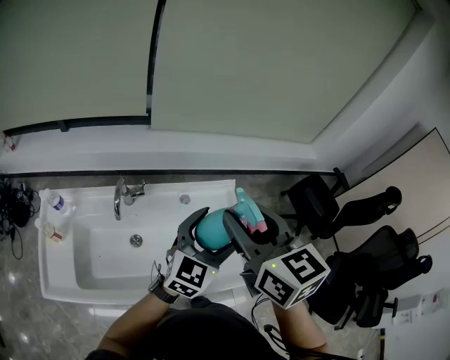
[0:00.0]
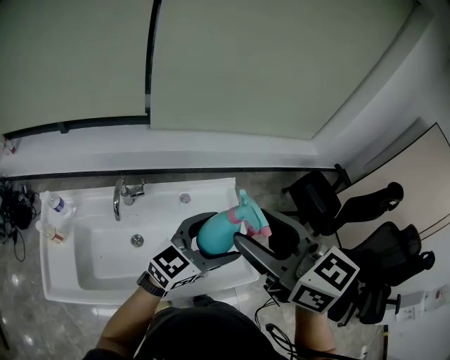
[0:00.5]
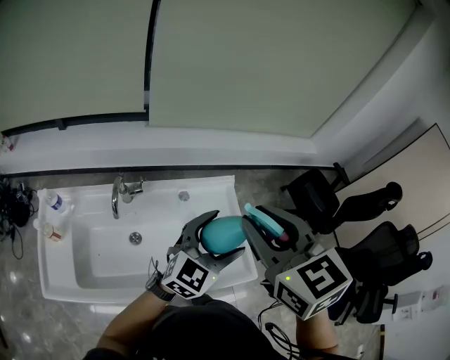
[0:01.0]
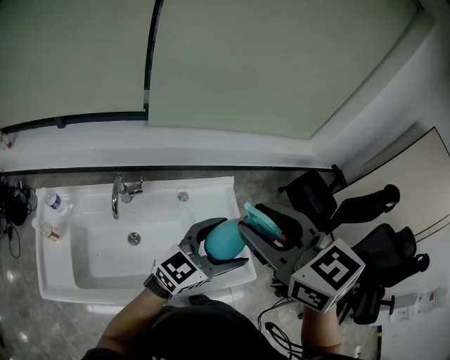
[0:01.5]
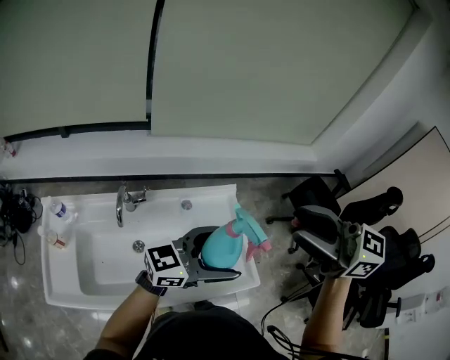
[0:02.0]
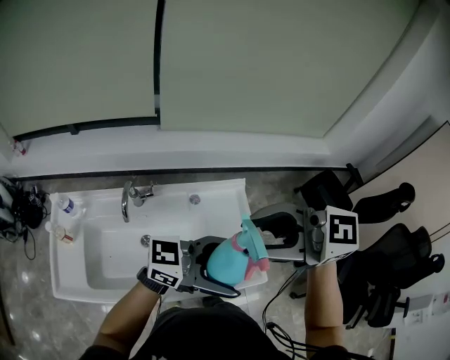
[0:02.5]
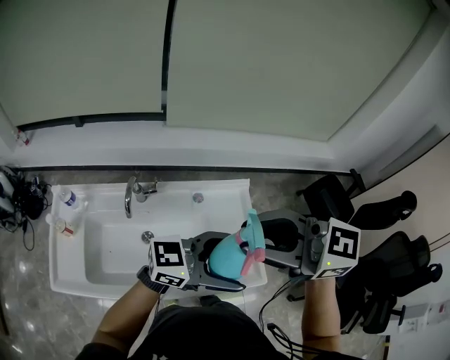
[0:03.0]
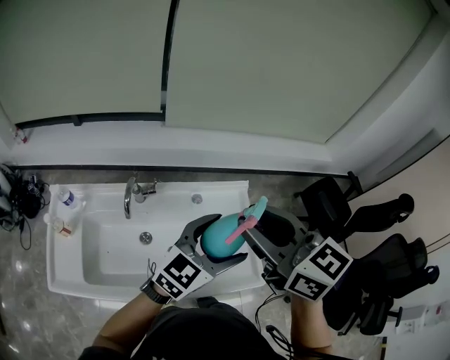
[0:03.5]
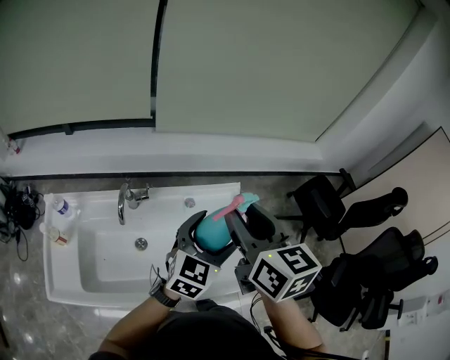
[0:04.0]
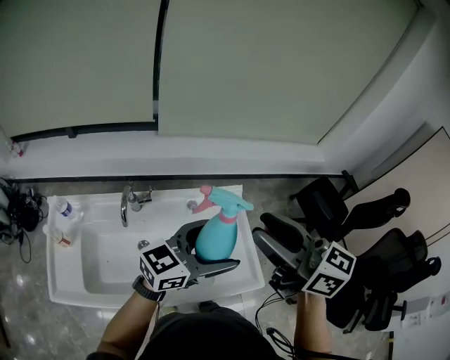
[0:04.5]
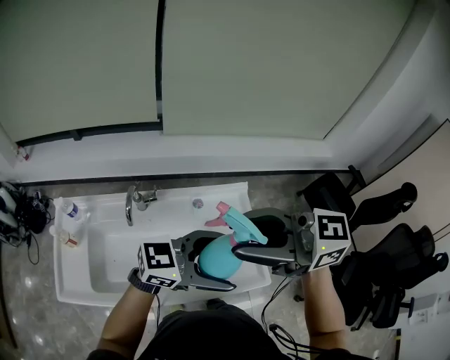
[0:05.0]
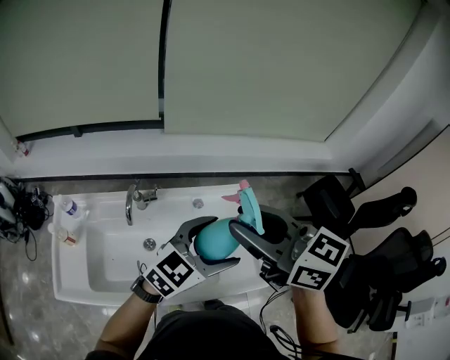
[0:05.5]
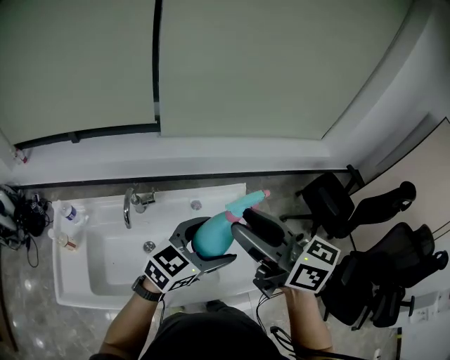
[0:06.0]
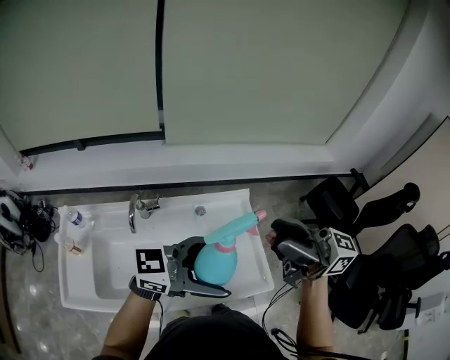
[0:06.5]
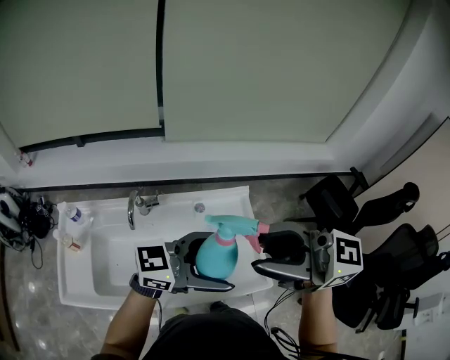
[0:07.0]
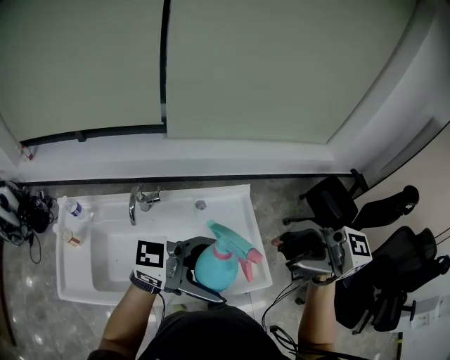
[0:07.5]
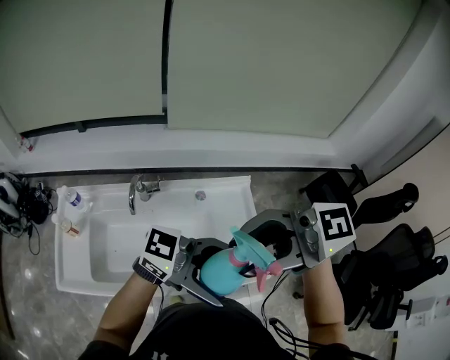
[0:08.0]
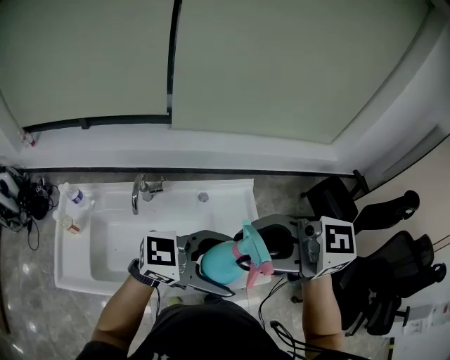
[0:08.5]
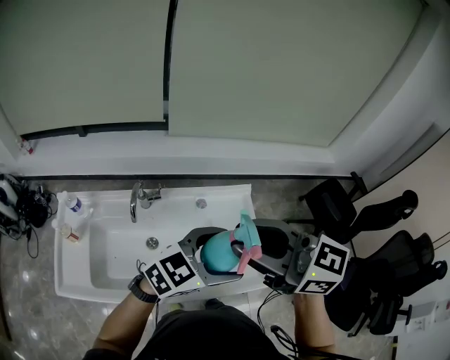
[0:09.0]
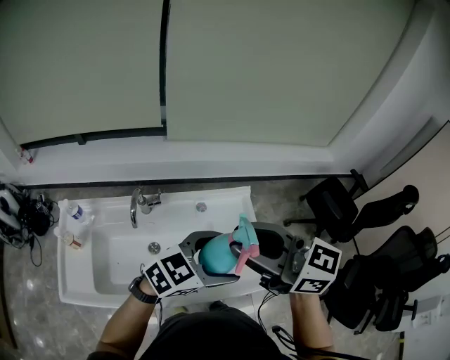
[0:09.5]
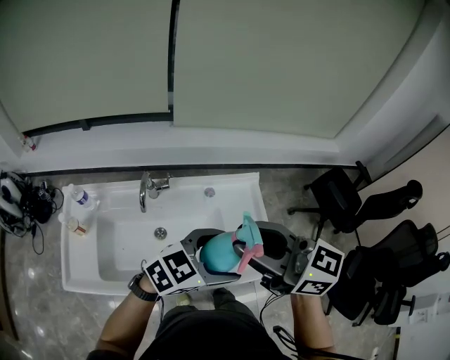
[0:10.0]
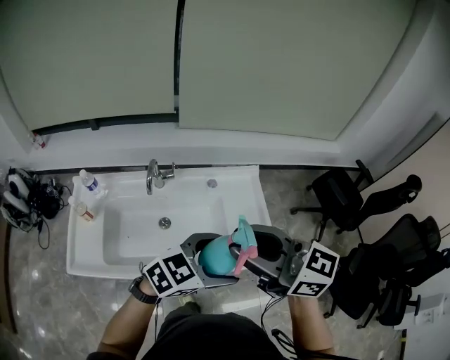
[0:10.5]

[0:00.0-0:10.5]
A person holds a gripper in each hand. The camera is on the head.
0:00.0 to 0:02.0: The left gripper moves some 5 cm, and changes its angle by about 50 degrees, while the right gripper ends up some 10 cm from where it was, and changes its angle by about 30 degrees.
0:02.0 to 0:04.0: The right gripper ends up approximately 15 cm from where it was, and changes its angle by some 40 degrees. The left gripper changes place by approximately 10 cm, and rotates roughly 50 degrees.
0:04.0 to 0:06.5: The left gripper goes up and down, approximately 10 cm each way, reversing 2 times, and turns by about 60 degrees. Meanwhile the right gripper changes place by some 10 cm, and tips its fingers upward by some 40 degrees.
0:06.5 to 0:08.5: The right gripper moves some 10 cm, and swivels about 30 degrees.
0:08.5 to 0:10.5: The right gripper shifts by roughly 10 cm, and swivels about 30 degrees. Meanwhile the left gripper moves some 10 cm, and rotates some 30 degrees.

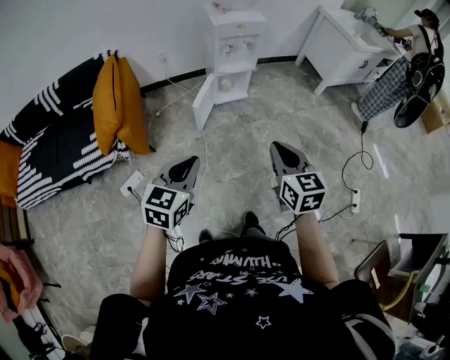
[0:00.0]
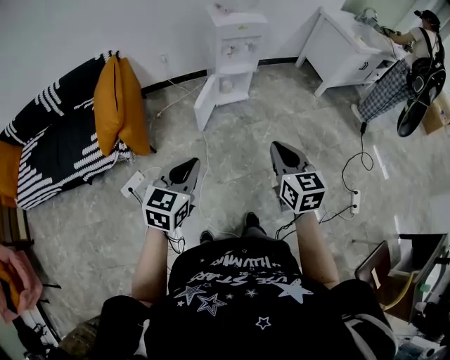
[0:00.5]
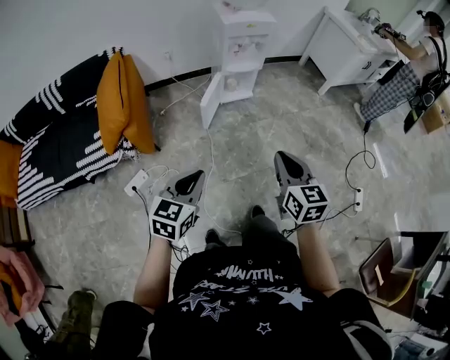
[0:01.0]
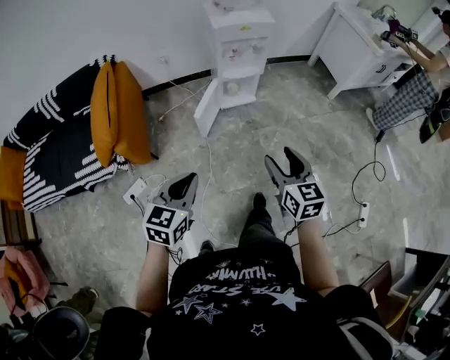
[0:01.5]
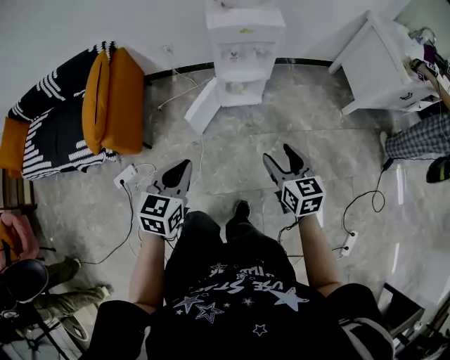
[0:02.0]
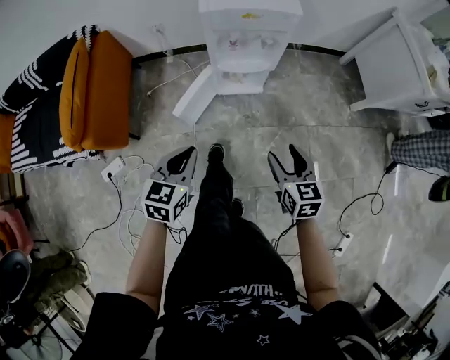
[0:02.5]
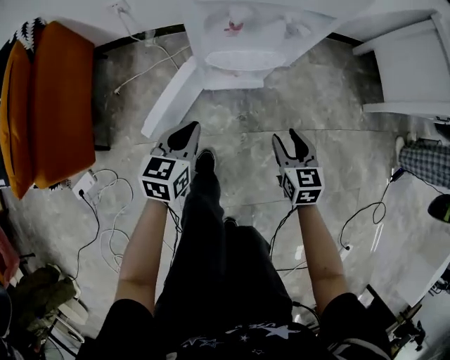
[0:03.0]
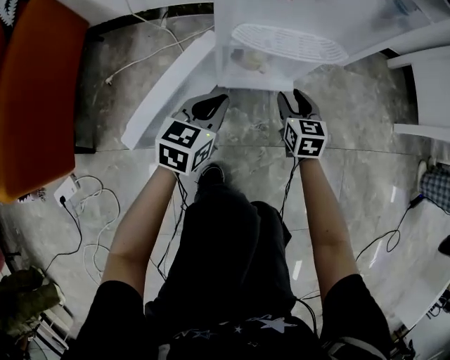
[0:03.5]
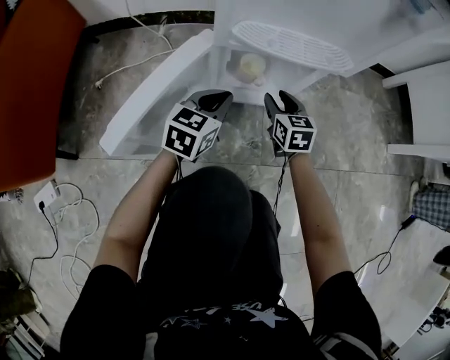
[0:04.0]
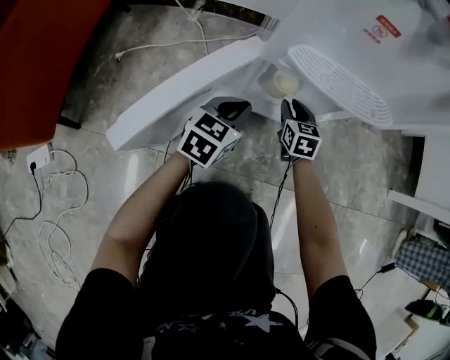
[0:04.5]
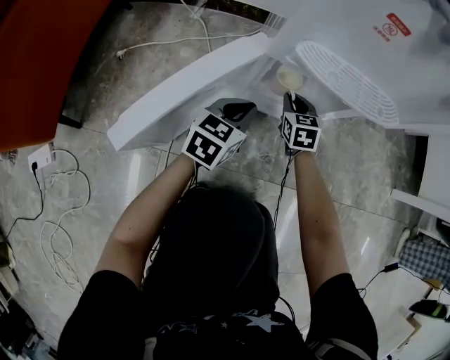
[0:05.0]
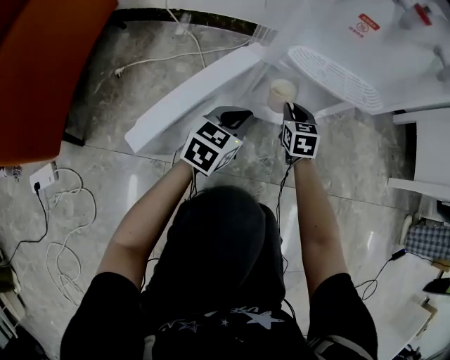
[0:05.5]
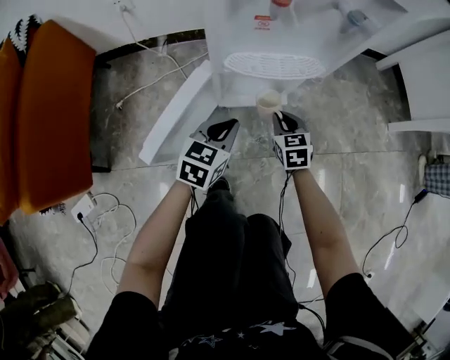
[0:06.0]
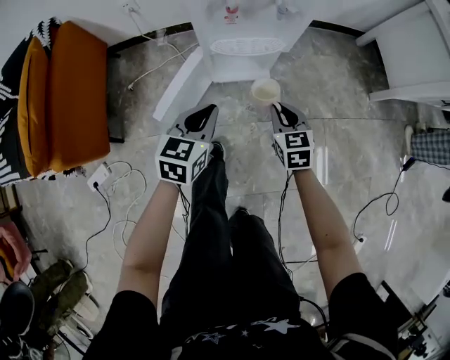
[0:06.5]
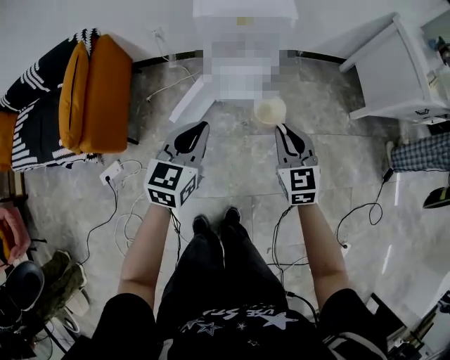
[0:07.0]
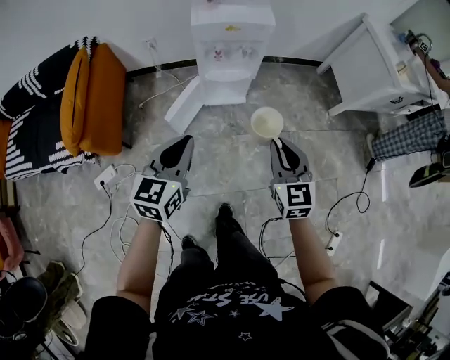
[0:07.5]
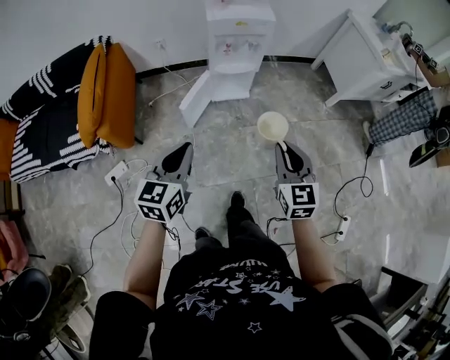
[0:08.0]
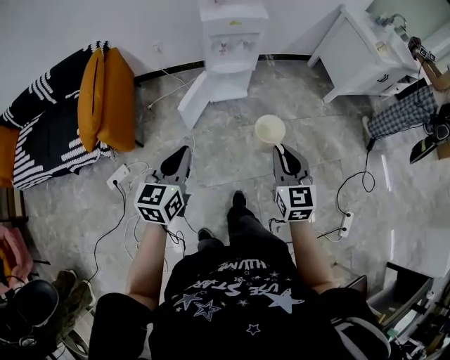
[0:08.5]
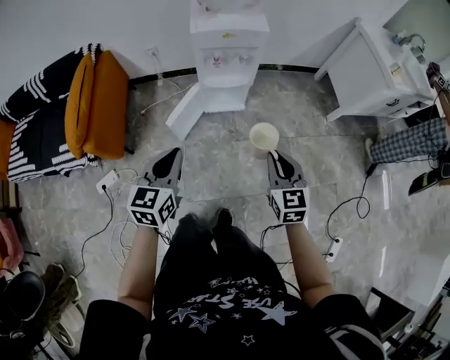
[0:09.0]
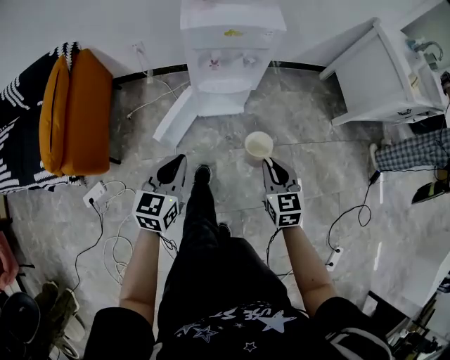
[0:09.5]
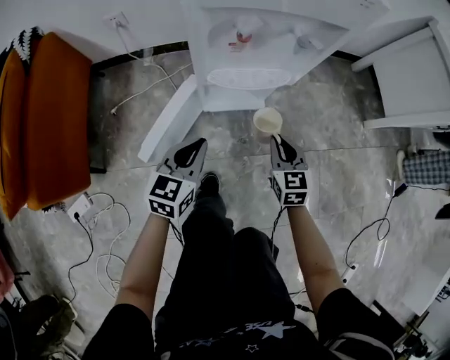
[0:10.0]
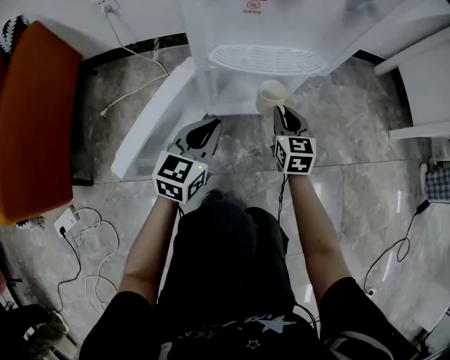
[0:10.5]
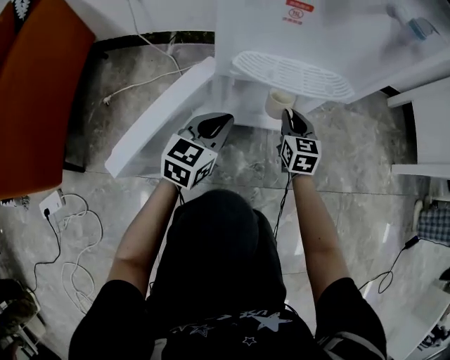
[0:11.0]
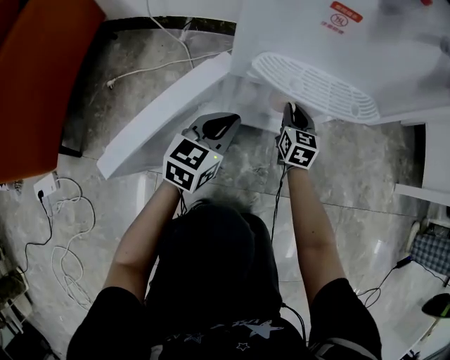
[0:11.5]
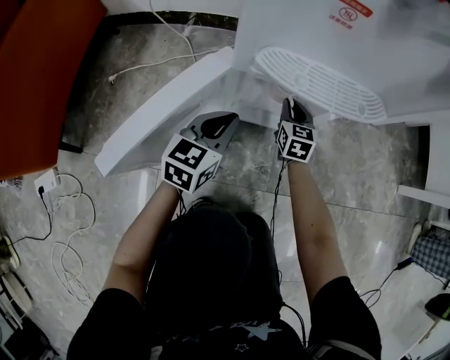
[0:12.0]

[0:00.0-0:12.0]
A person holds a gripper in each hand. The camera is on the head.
0:00.0 to 0:02.0: The right gripper is displaced forward and downward by some 30 cm, and opens up, while the left gripper shifts roughly 25 cm forward.
0:02.0 to 0:04.0: Both grippers are carried forward, about 50 cm. The two grippers go some 60 cm downward.
0:04.0 to 0:06.0: The left gripper goes some 10 cm upward and backward. The right gripper goes about 10 cm backward and upward, and closes its fingers.
0:06.0 to 0:08.0: Both grippers are carried backward, about 50 cm. The grippers both shift upward by some 60 cm. The right gripper swivels roughly 30 degrees.
0:08.0 to 0:10.0: Both grippers travel together downward and forward, about 60 cm.
0:10.0 to 0:12.0: The grippers both shift downward and forward by about 30 cm.

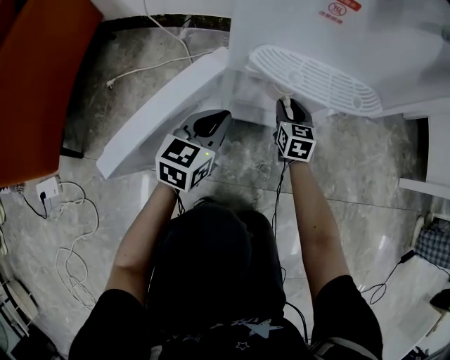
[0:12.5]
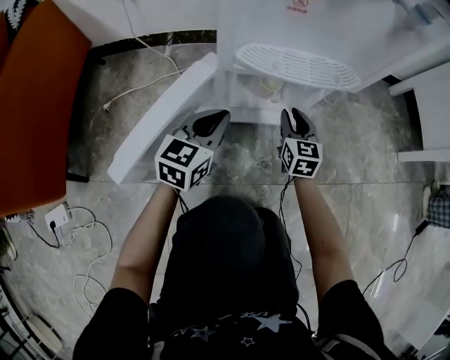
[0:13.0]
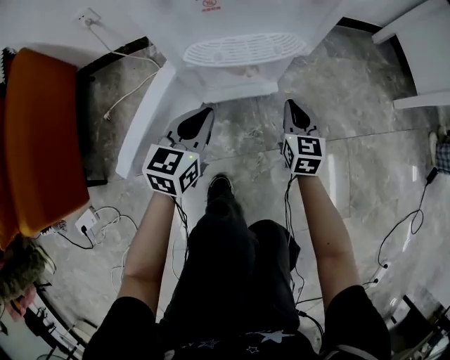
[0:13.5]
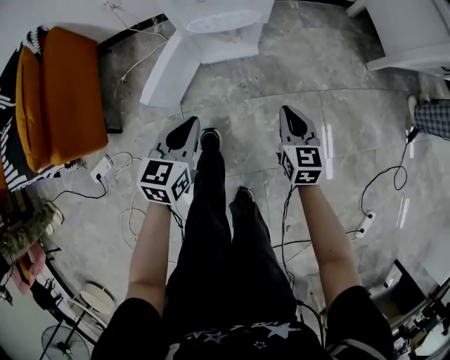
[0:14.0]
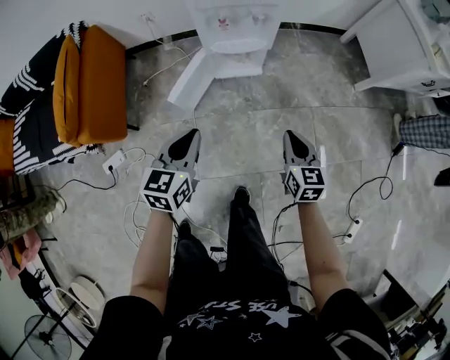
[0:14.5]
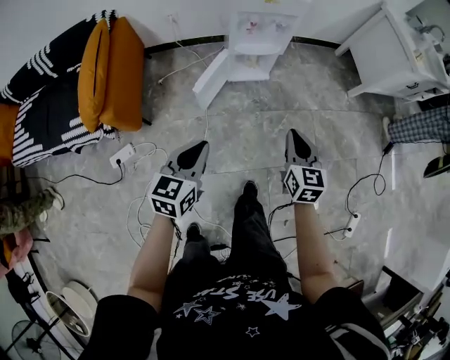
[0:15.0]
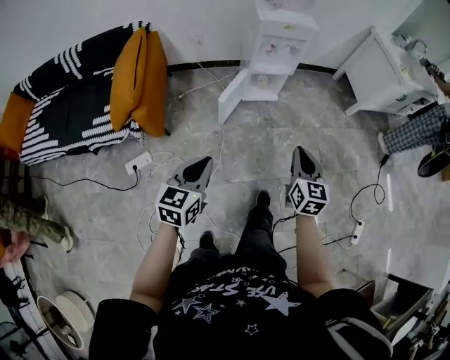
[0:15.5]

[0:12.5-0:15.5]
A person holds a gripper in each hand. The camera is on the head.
0:12.5 to 0:14.0: The left gripper is displaced upward and backward by roughly 40 cm. The right gripper goes about 50 cm upward, backward and to the right, and closes.
0:14.0 to 0:15.5: The left gripper heads backward, upward and to the left, covering approximately 50 cm. The right gripper travels upward, backward and to the left by about 50 cm.

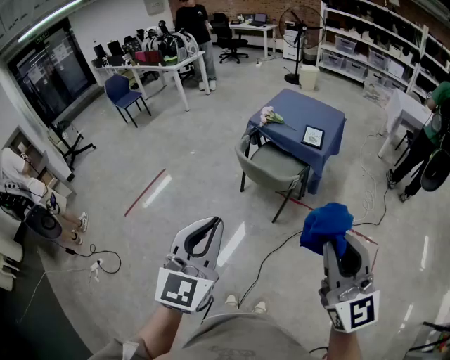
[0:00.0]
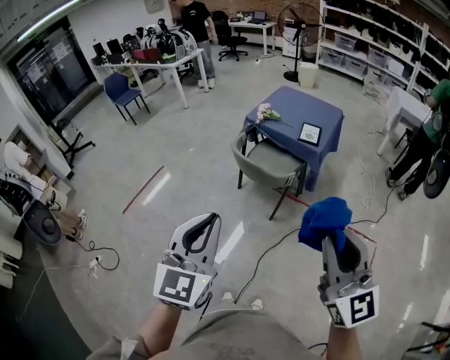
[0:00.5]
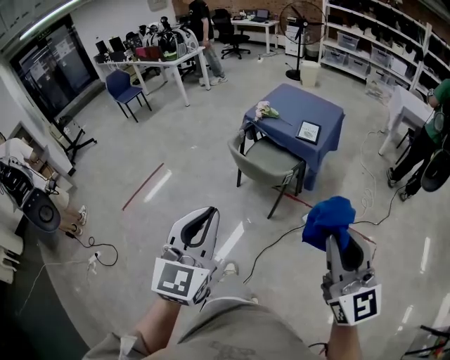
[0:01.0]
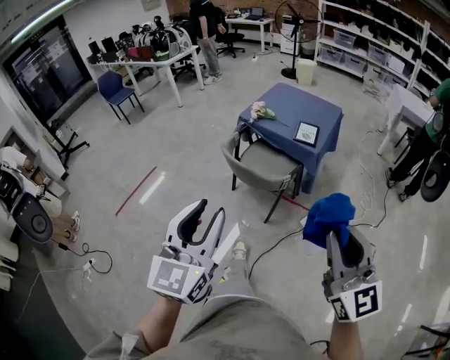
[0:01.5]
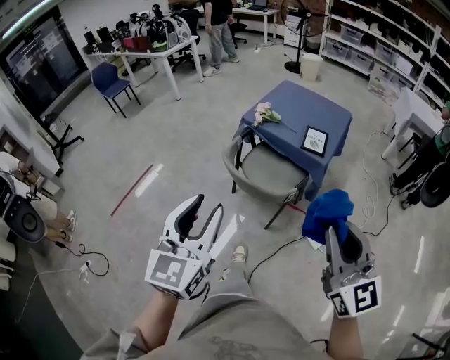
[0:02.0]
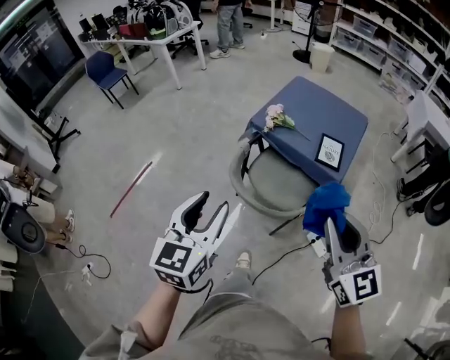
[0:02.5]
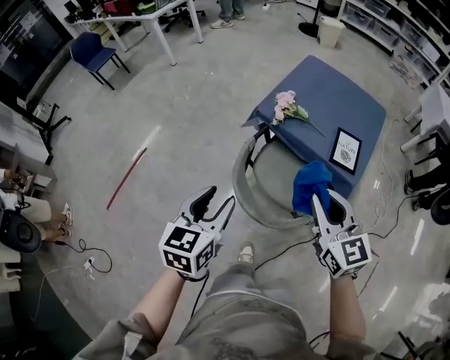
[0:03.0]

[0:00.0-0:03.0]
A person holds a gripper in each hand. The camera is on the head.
0:00.0 to 0:01.5: The left gripper travels forward and to the right by some 10 cm, and opens up. The right gripper heads to the right, forward and downward, covering some 10 cm.
0:01.5 to 0:03.0: The two grippers travel together, forward, some 50 cm. The right gripper changes its angle by some 20 degrees; the left gripper goes approximately 20 cm downward, and swivels some 30 degrees.
